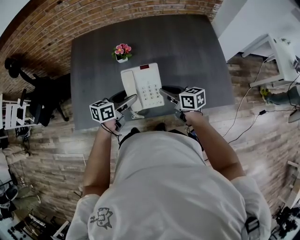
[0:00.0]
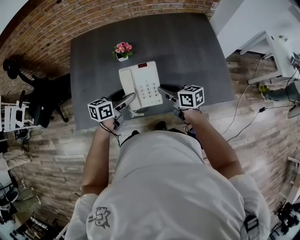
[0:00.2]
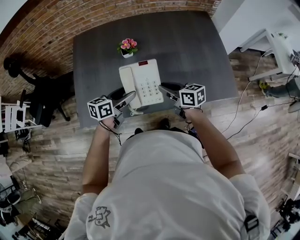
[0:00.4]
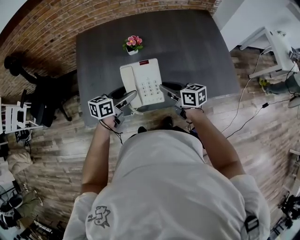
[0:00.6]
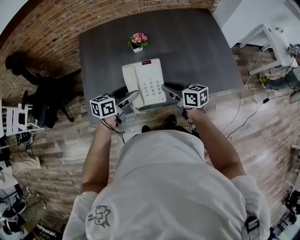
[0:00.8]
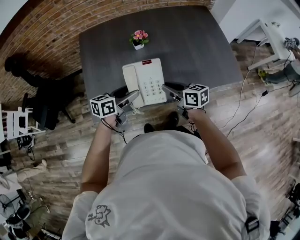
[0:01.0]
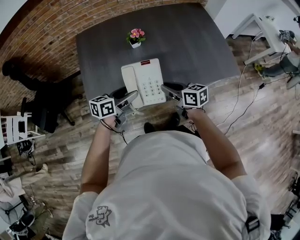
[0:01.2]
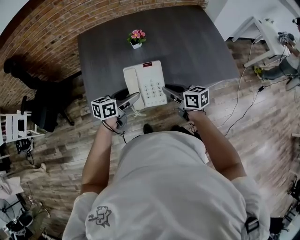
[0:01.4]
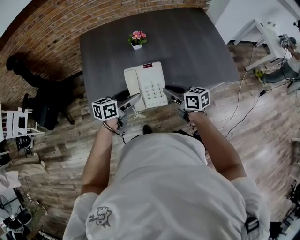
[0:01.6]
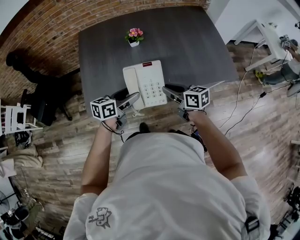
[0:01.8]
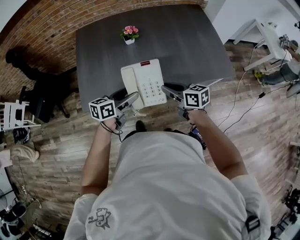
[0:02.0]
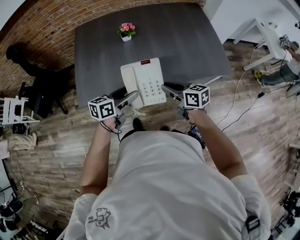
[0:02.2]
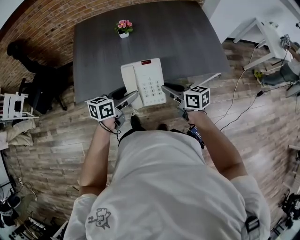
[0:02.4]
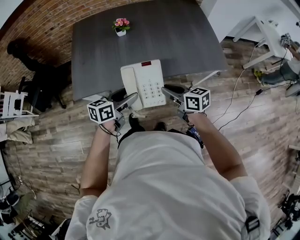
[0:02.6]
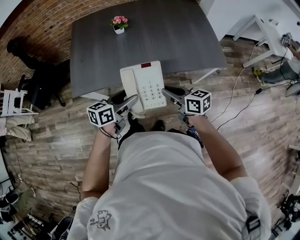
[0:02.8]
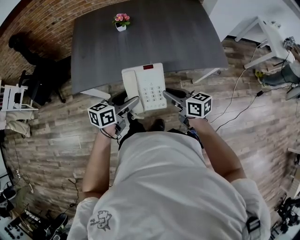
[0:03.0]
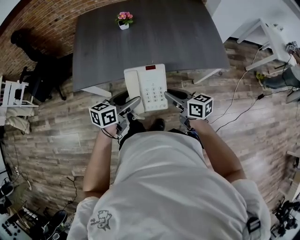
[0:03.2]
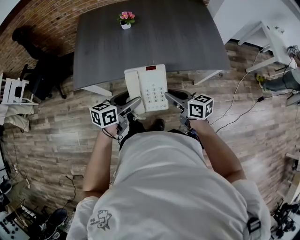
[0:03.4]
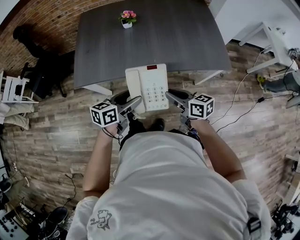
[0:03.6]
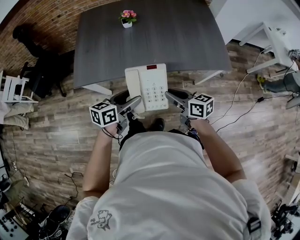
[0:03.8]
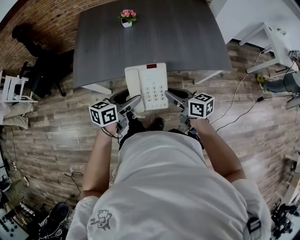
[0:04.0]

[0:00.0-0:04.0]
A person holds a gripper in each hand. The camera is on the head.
0:00.0 to 0:01.4: The two grippers go some 20 cm to the left and backward.
0:01.4 to 0:02.6: The right gripper goes about 25 cm to the right and backward. Meanwhile the left gripper moves backward and to the right, approximately 25 cm.
0:02.6 to 0:04.0: Both grippers stay about where they are.

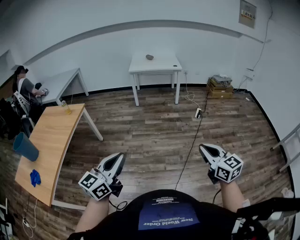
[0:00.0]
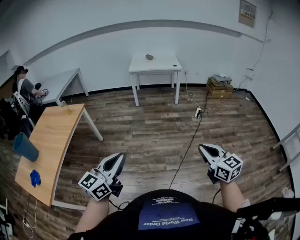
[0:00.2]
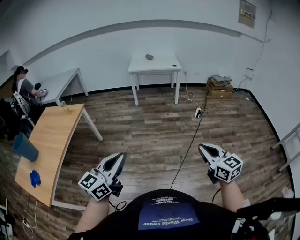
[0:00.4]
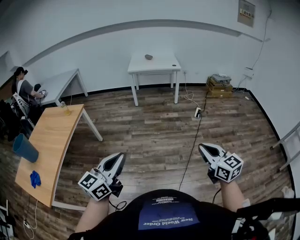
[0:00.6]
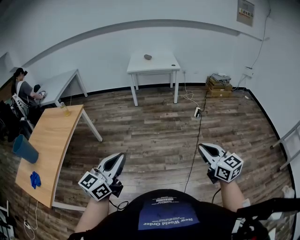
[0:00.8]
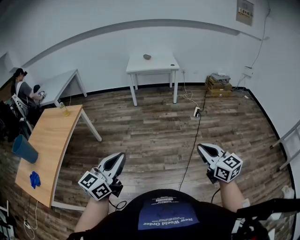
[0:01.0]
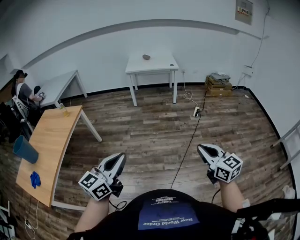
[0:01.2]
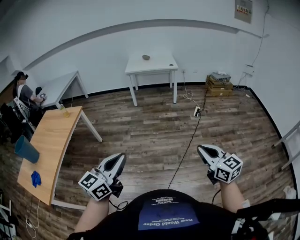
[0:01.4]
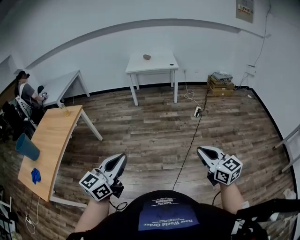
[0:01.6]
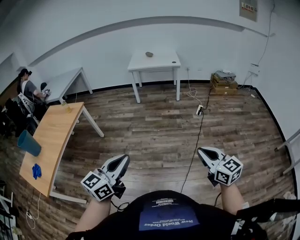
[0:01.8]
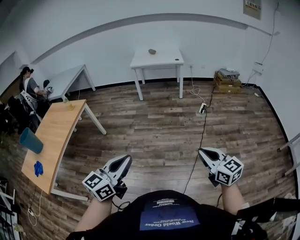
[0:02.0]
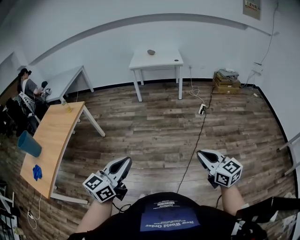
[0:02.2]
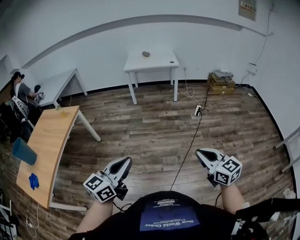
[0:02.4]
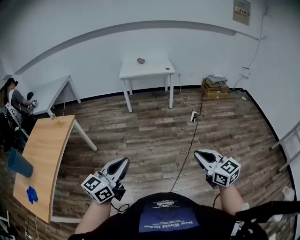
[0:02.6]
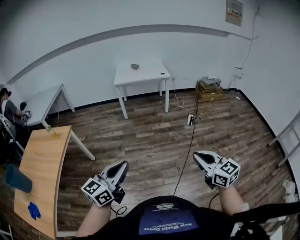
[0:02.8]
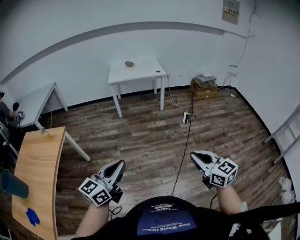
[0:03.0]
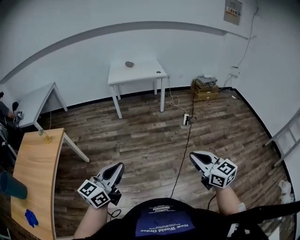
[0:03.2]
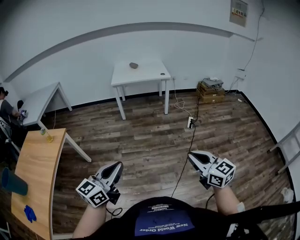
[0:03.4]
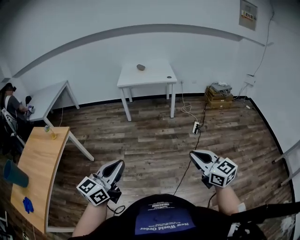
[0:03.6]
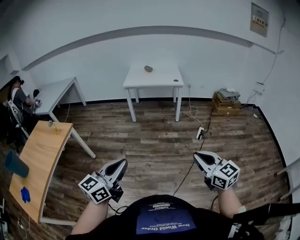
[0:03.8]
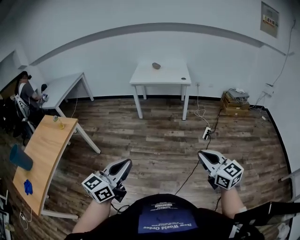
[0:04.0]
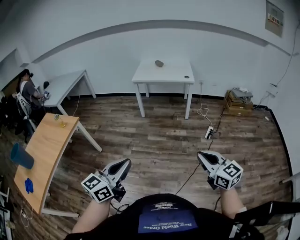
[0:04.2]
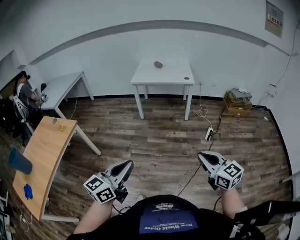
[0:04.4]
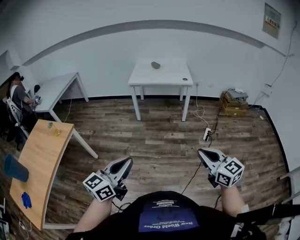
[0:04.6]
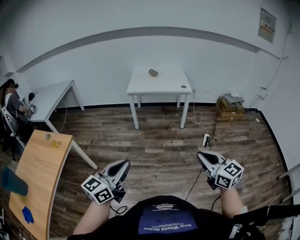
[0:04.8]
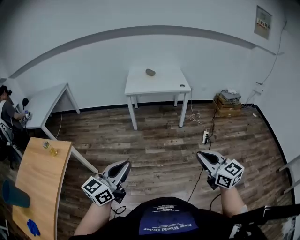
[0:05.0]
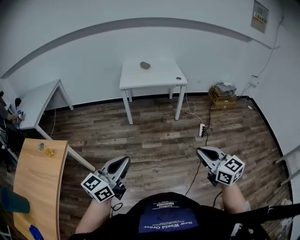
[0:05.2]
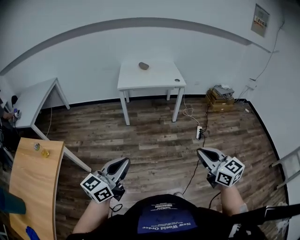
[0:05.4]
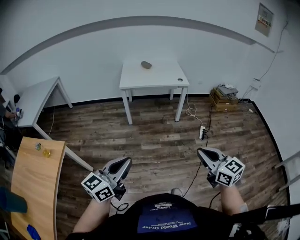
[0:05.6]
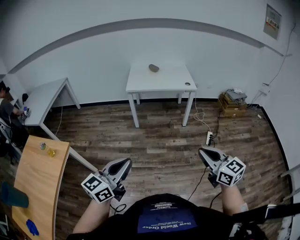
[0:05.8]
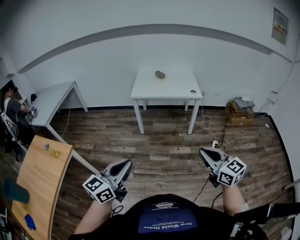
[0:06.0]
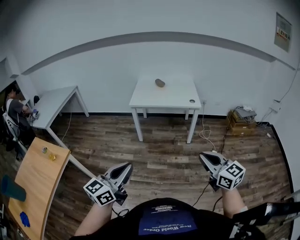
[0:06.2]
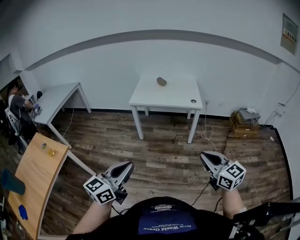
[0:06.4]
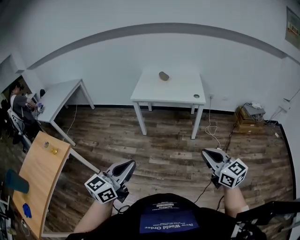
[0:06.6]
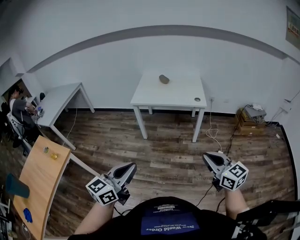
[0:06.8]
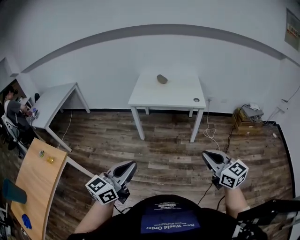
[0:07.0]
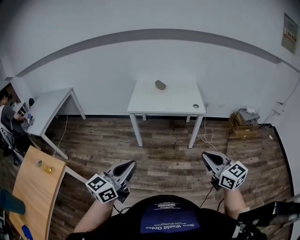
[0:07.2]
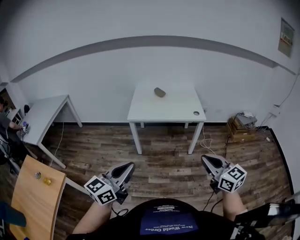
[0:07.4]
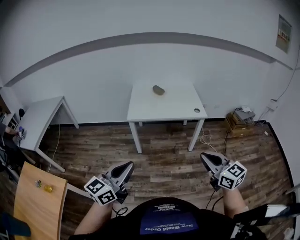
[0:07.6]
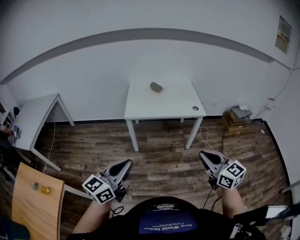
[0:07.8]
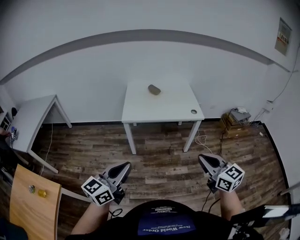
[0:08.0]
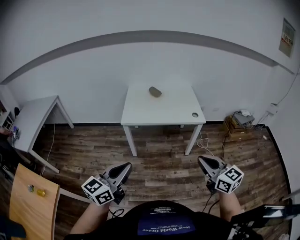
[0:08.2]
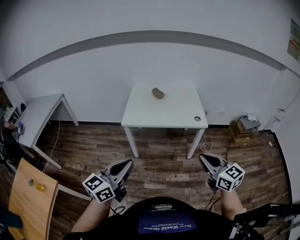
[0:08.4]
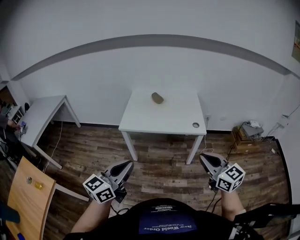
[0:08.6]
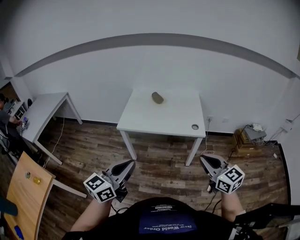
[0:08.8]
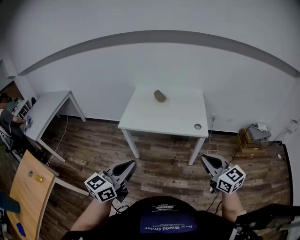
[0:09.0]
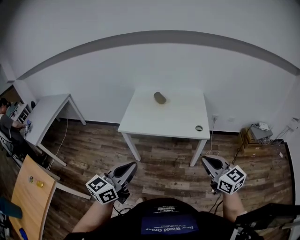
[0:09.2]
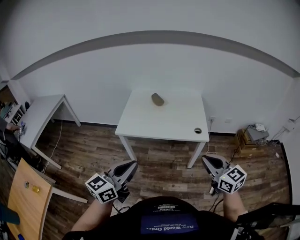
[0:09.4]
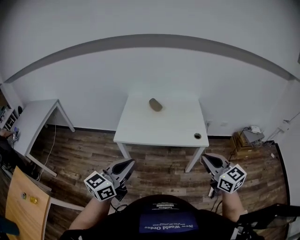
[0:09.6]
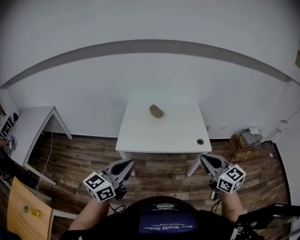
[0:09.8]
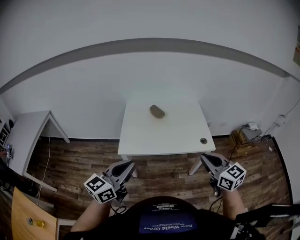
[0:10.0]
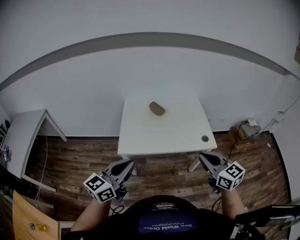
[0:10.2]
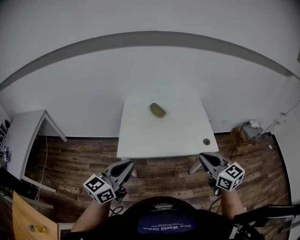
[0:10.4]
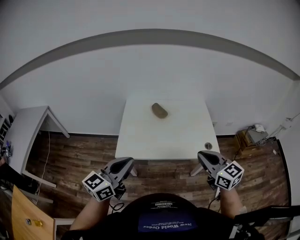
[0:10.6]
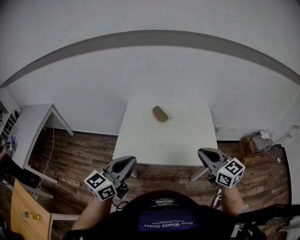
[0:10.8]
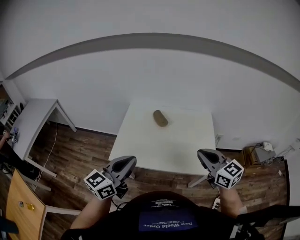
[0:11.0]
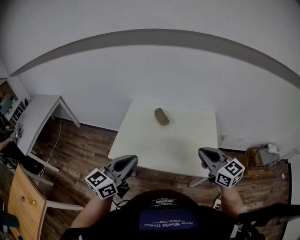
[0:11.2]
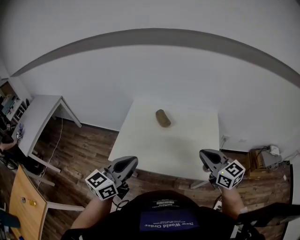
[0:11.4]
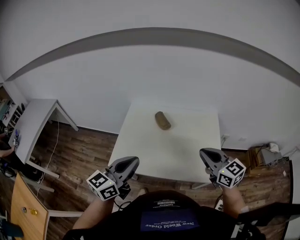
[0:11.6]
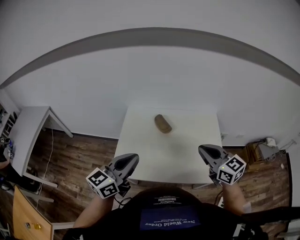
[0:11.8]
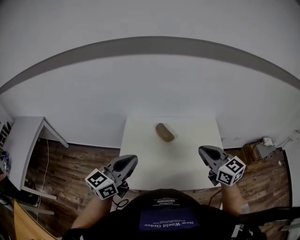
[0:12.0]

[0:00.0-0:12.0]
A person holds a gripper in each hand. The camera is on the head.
0:00.0 to 0:01.6: The grippers both shift to the right by about 10 cm.
0:01.6 to 0:03.0: The two grippers go approximately 25 cm forward and to the left.
0:03.0 to 0:04.4: The right gripper heads forward and to the right, covering roughly 30 cm; the left gripper is displaced to the right and forward by some 25 cm.
0:04.4 to 0:06.0: The grippers both shift forward and to the left by some 30 cm.
0:06.0 to 0:07.6: Both grippers move forward, some 30 cm.
0:07.6 to 0:09.0: The left gripper moves to the right and forward, some 30 cm, while the right gripper goes roughly 35 cm forward and to the right.
0:09.0 to 0:10.4: The grippers both shift forward and to the left by some 35 cm.
0:10.4 to 0:12.0: The two grippers go some 35 cm forward.

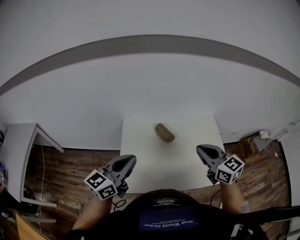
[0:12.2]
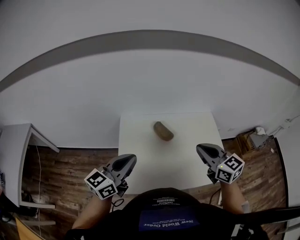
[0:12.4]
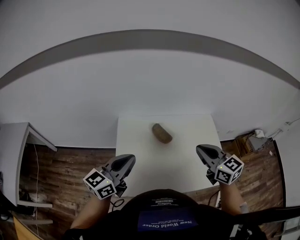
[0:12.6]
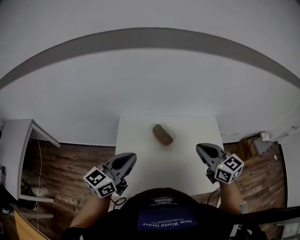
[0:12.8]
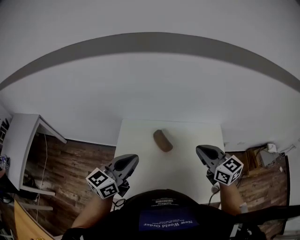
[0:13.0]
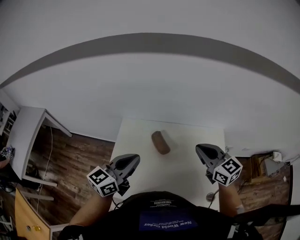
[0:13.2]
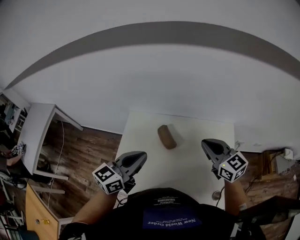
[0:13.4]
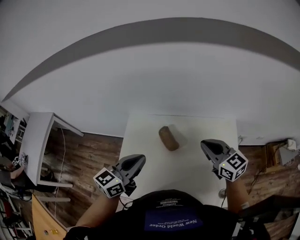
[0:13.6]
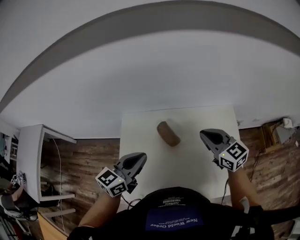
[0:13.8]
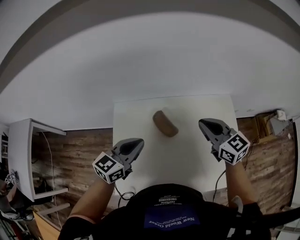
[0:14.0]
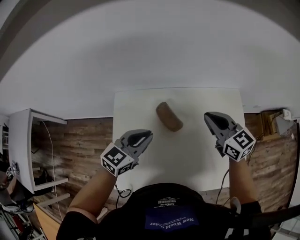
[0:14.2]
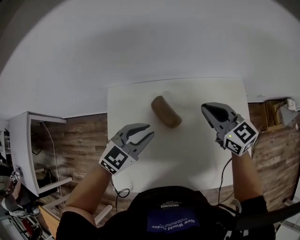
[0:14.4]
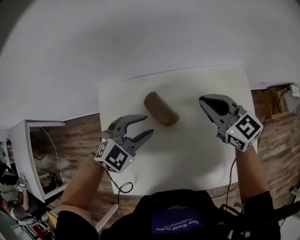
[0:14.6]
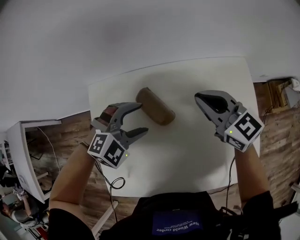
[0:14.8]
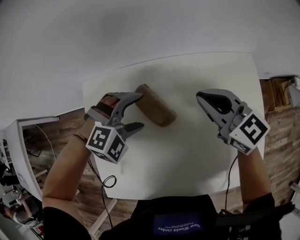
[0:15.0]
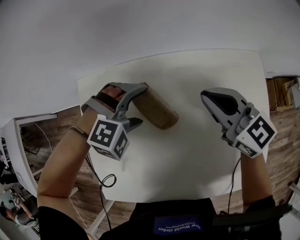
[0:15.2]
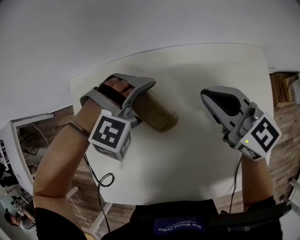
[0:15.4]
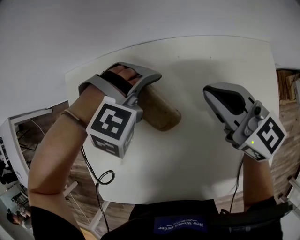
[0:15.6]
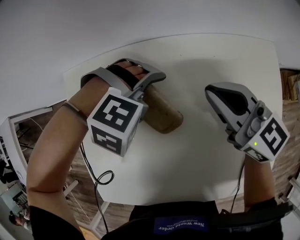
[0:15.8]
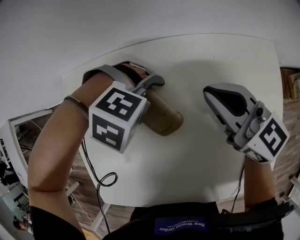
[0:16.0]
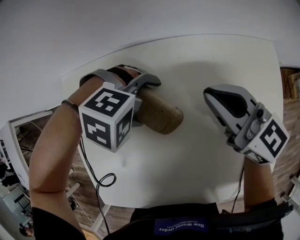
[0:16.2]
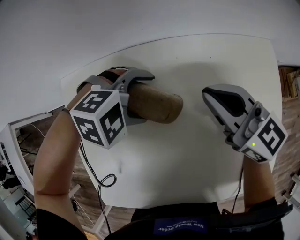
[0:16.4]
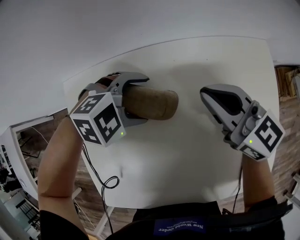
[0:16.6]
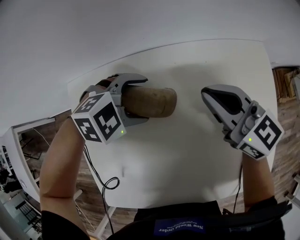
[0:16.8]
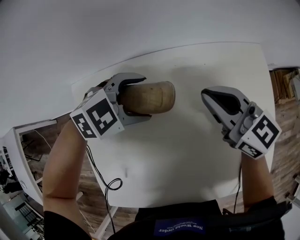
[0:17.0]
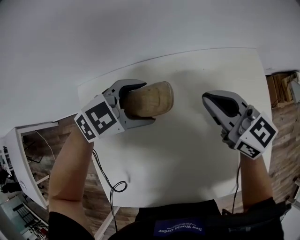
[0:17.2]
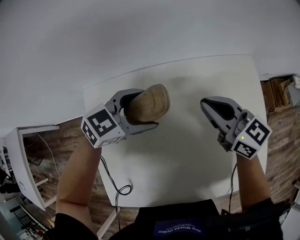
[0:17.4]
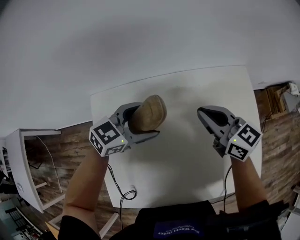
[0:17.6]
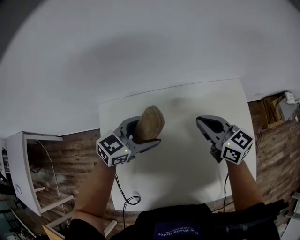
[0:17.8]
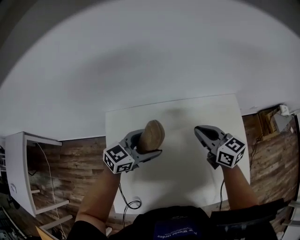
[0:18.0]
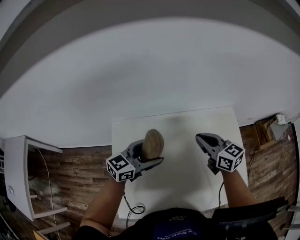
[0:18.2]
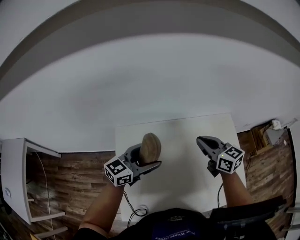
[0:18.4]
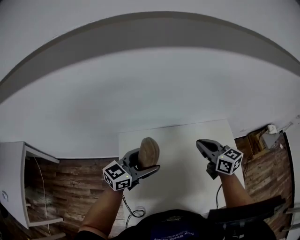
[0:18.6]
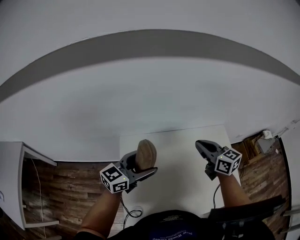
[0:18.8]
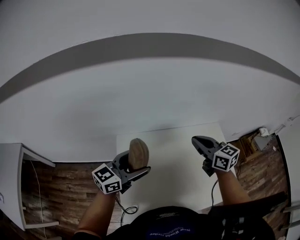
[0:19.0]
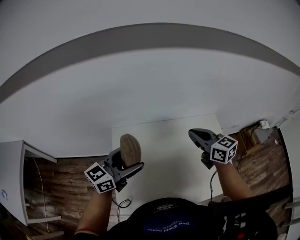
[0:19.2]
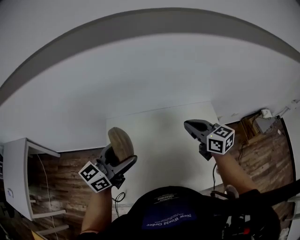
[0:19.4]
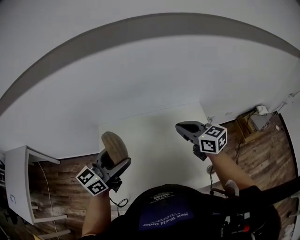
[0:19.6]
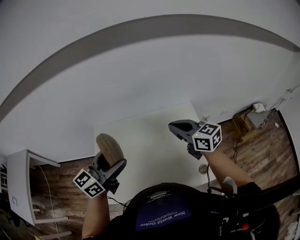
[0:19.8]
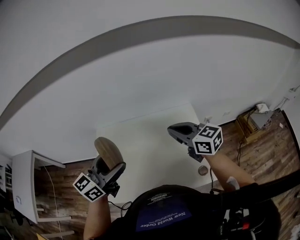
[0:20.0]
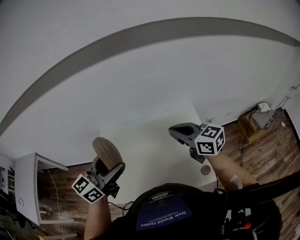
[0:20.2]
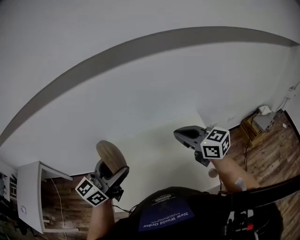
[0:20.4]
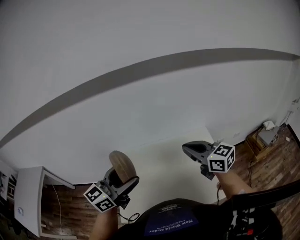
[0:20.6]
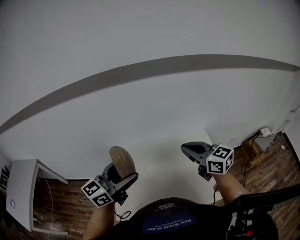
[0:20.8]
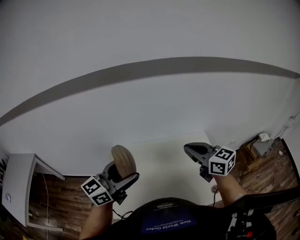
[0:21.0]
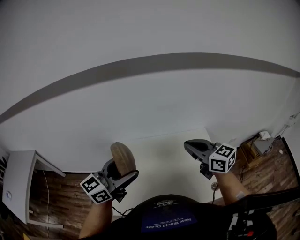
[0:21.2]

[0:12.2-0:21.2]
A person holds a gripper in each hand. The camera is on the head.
0:12.2 to 0:13.8: The left gripper shifts about 25 cm forward, downward and to the right, while the right gripper travels forward and downward by some 25 cm.
0:13.8 to 0:15.2: The left gripper is displaced downward and forward by roughly 35 cm, twists roughly 80 degrees clockwise, seen from behind, and opens its fingers. Meanwhile the right gripper travels downward and forward by about 25 cm.
0:15.2 to 0:16.6: The left gripper ends up about 5 cm from where it was, and swivels about 30 degrees.
0:16.6 to 0:18.2: Both grippers move upward, roughly 20 cm. The left gripper tilts its fingers some 50 degrees upward.
0:18.2 to 0:19.8: The left gripper is displaced upward and backward by roughly 25 cm, and rotates about 20 degrees; the right gripper moves upward, to the right and backward, some 25 cm.
0:19.8 to 0:21.2: The left gripper heads to the left and upward, covering some 10 cm; the right gripper is displaced upward, to the left and backward by approximately 15 cm.
